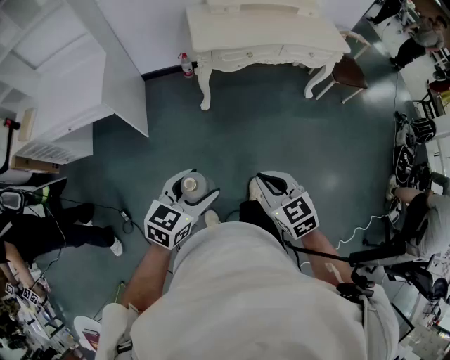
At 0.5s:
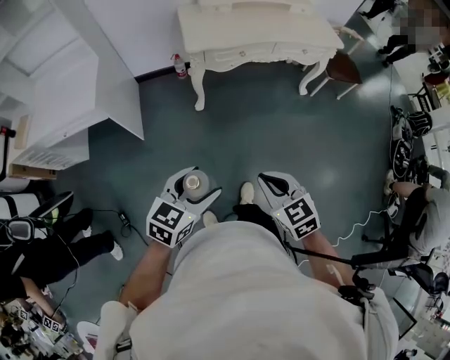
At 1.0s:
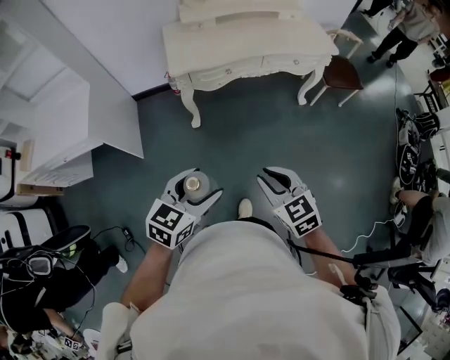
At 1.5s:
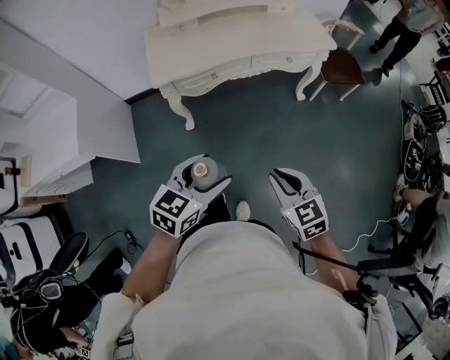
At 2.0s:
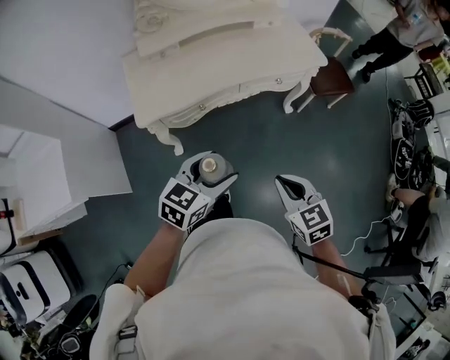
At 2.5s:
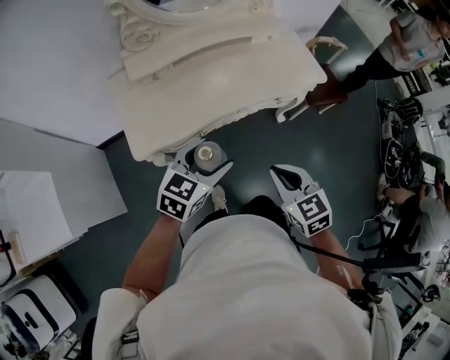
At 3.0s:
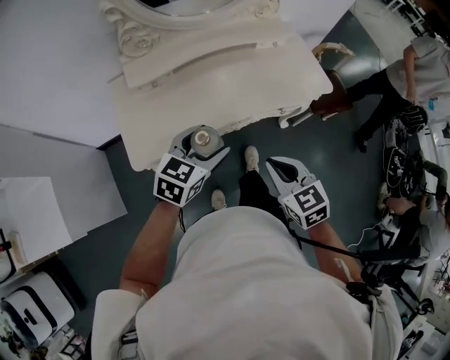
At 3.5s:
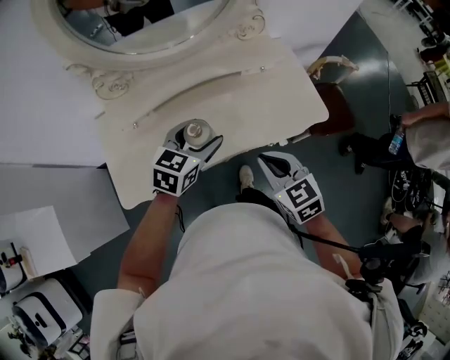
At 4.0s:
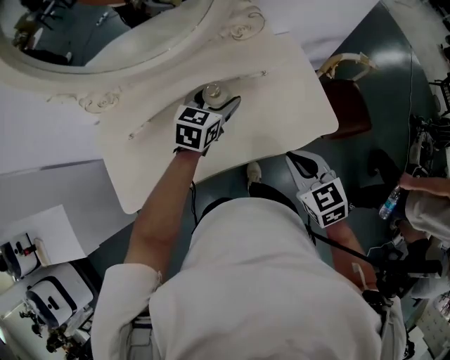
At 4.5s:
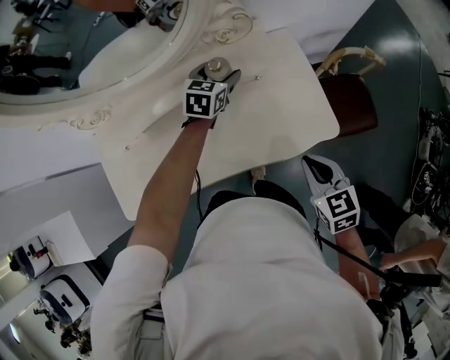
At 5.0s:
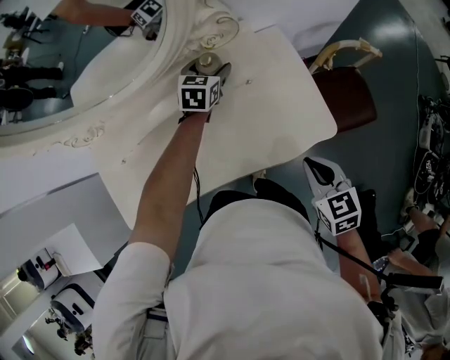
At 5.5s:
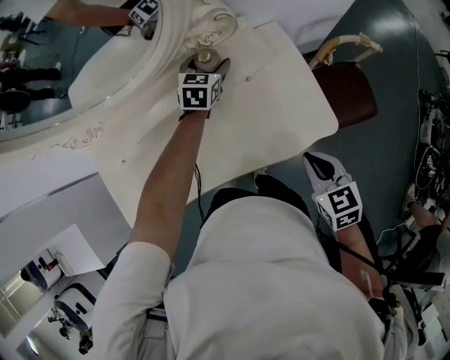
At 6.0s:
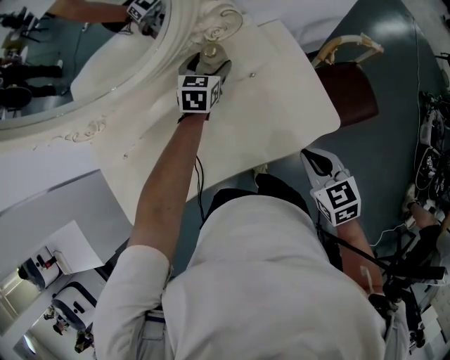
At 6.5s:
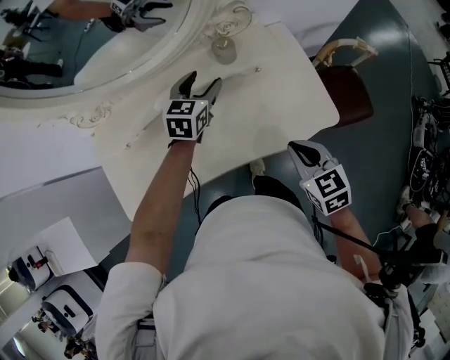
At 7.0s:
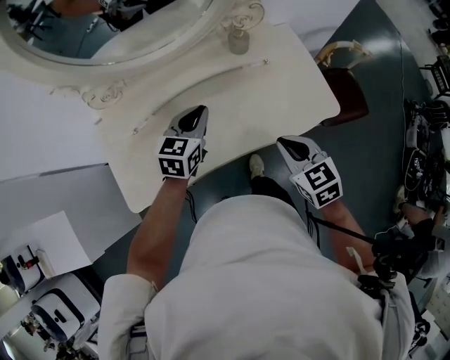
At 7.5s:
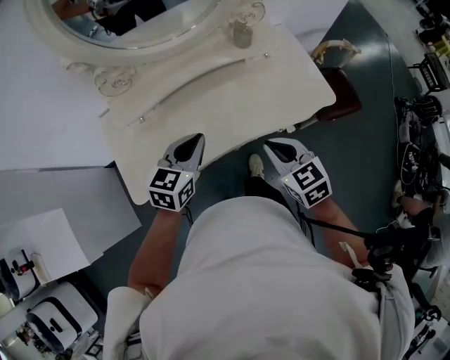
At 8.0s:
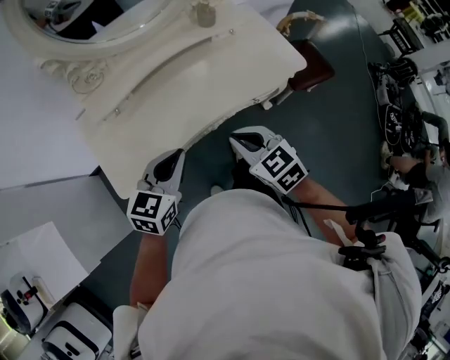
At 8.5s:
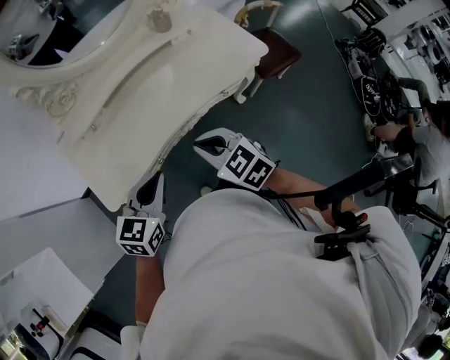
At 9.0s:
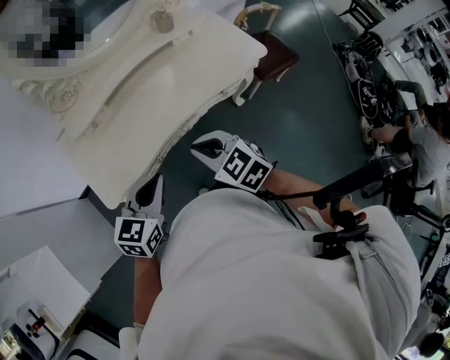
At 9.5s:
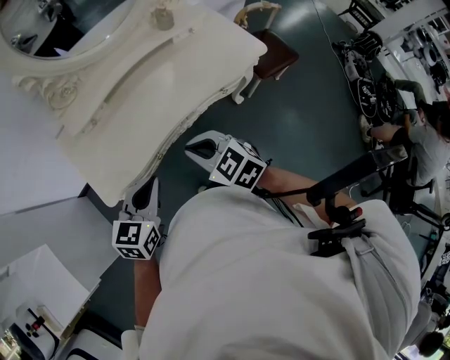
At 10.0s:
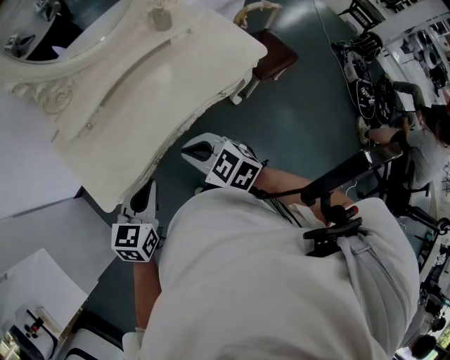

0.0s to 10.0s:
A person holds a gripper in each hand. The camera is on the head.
0.0s to 2.0s: The pair of grippers is taken forward and to the right, roughly 50 cm.
2.0s to 4.0s: The two grippers travel together, forward, about 60 cm.
4.0s to 6.0s: The right gripper shifts about 10 cm to the right, forward and downward; the left gripper travels forward and downward by roughly 20 cm.
6.0s to 8.0s: The left gripper is displaced backward and to the left by roughly 60 cm, and closes its fingers. Meanwhile the right gripper heads to the left and backward, covering roughly 35 cm.
8.0s to 10.0s: The left gripper goes about 5 cm backward; the right gripper travels to the left by roughly 5 cm.

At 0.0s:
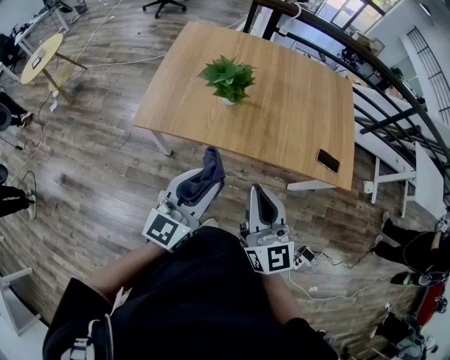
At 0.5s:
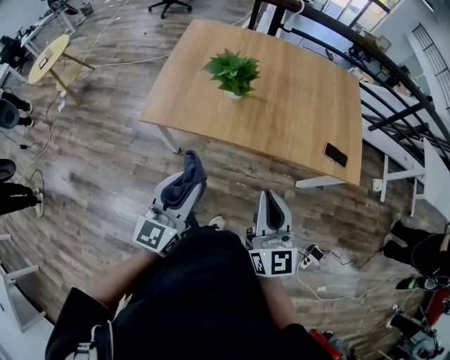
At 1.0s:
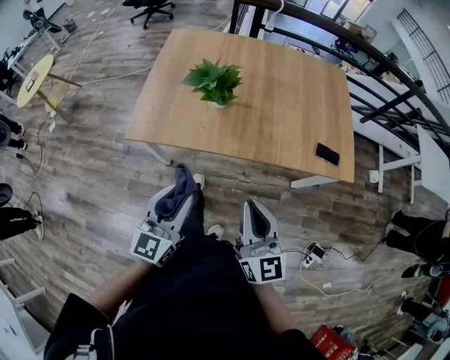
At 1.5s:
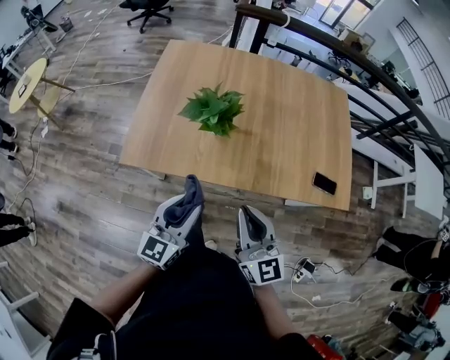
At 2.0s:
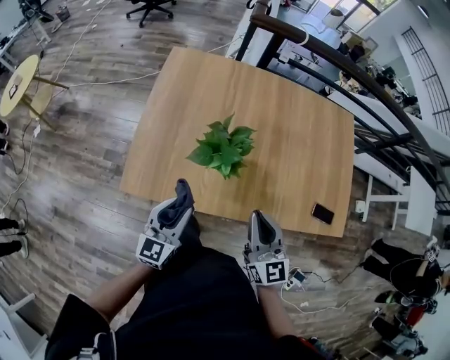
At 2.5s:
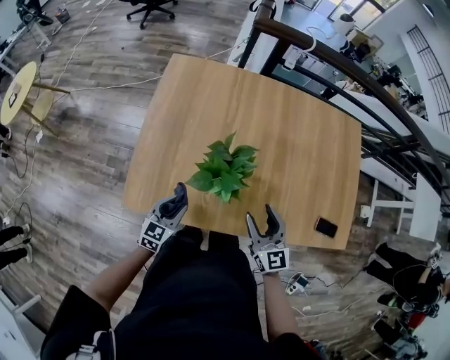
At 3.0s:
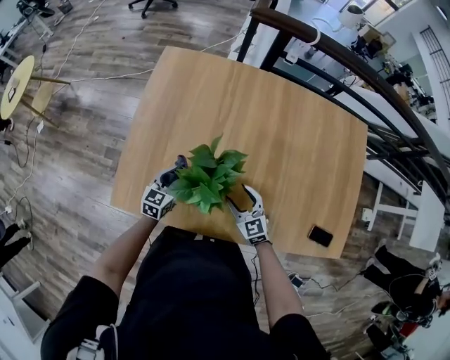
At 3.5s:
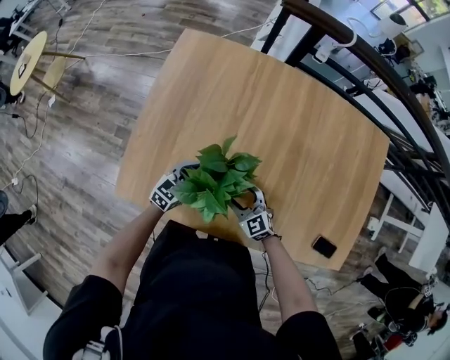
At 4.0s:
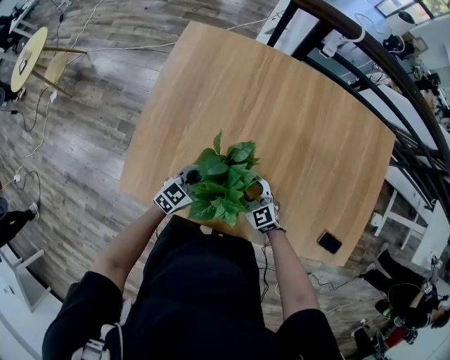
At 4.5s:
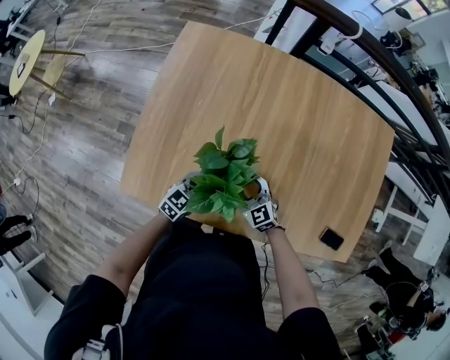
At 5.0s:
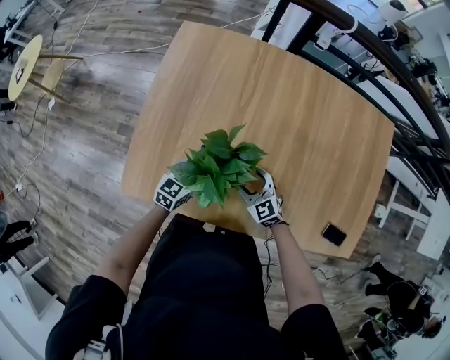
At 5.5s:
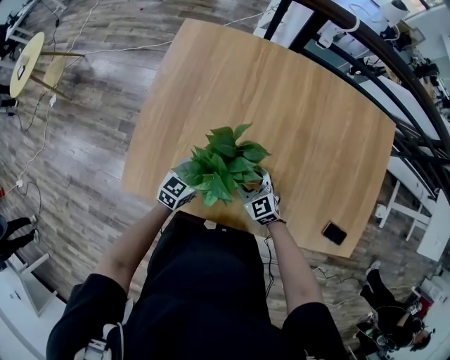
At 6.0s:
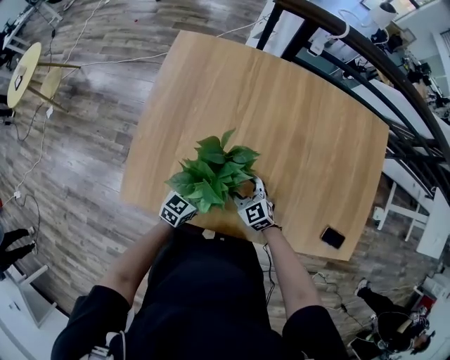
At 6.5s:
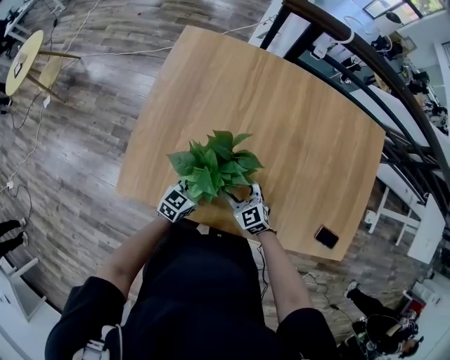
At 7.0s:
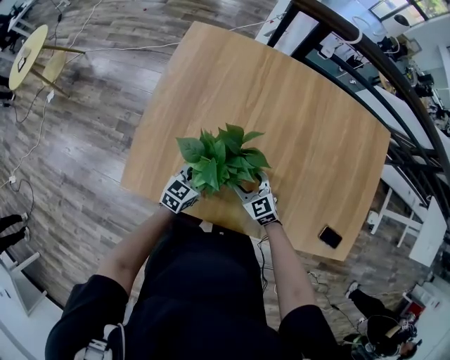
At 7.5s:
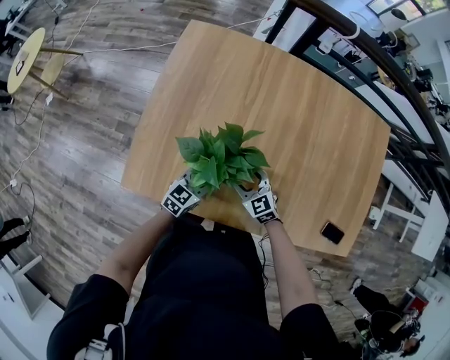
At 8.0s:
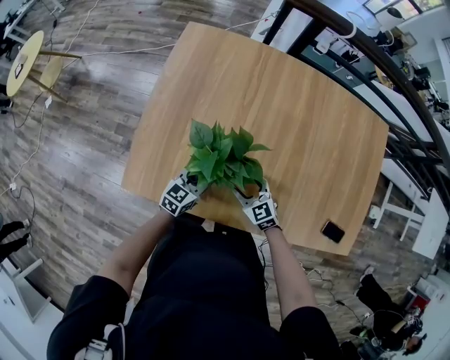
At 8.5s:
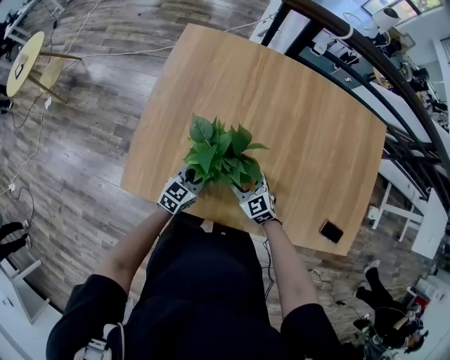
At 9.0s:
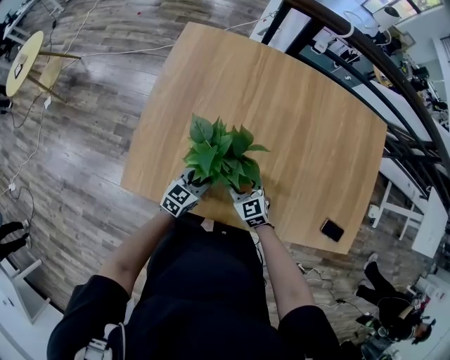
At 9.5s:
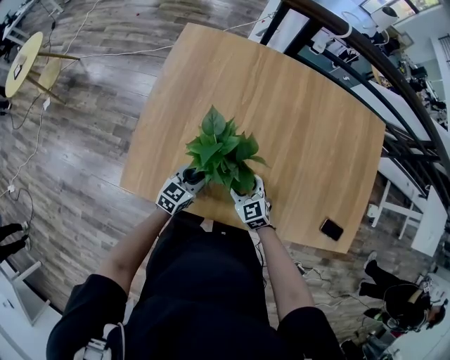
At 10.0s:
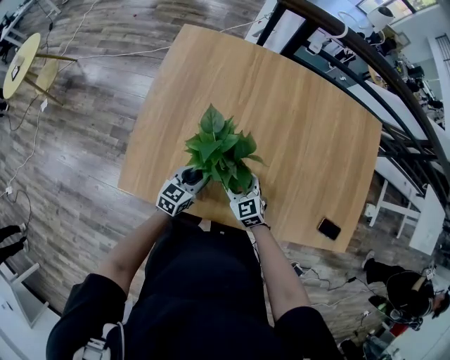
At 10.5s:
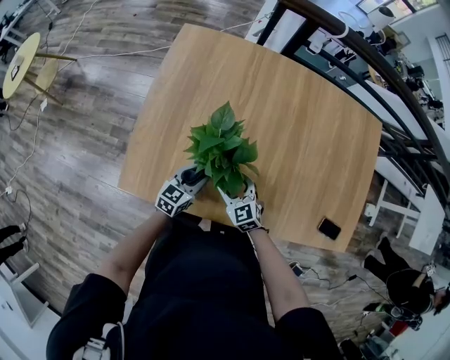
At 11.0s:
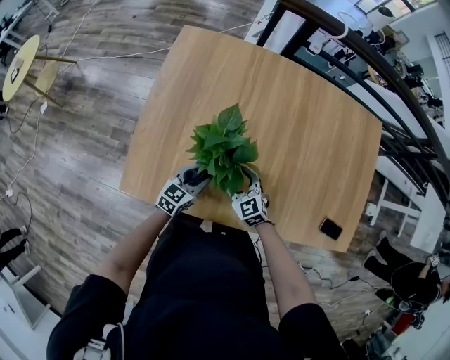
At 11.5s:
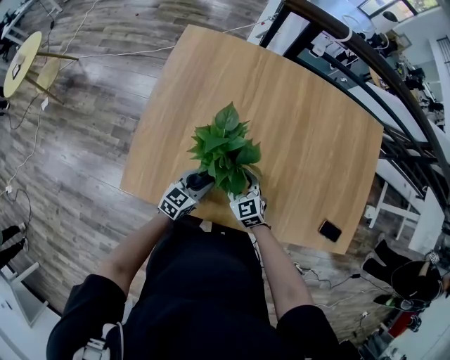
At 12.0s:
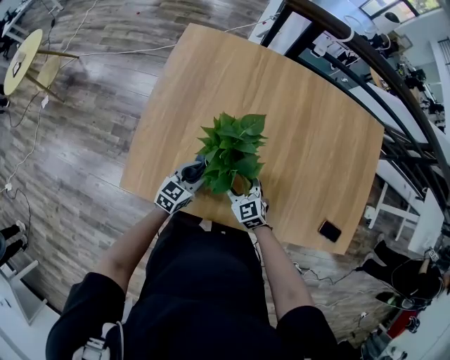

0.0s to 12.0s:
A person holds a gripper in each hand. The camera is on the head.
0.0s to 2.0s: The left gripper shifts some 25 cm forward, downward and to the left. Meanwhile the right gripper moves forward, approximately 20 cm.
2.0s to 4.0s: The grippers both shift downward and forward by about 25 cm. The right gripper rotates roughly 50 degrees, and opens up. The left gripper rotates about 30 degrees.
4.0s to 12.0s: The grippers move only a little.

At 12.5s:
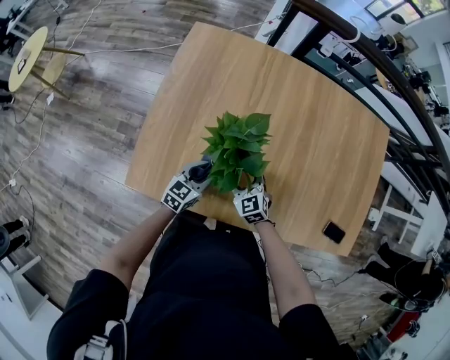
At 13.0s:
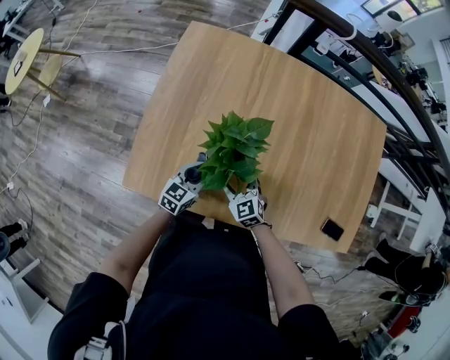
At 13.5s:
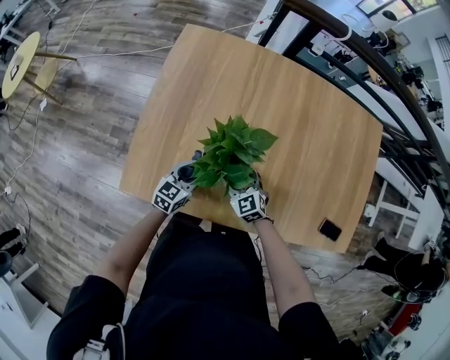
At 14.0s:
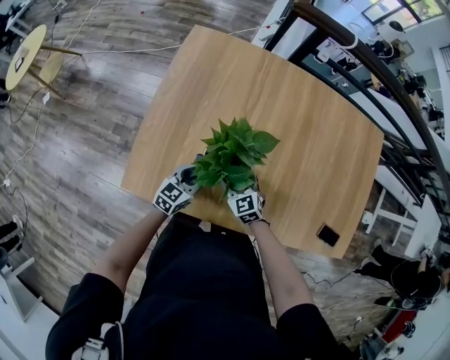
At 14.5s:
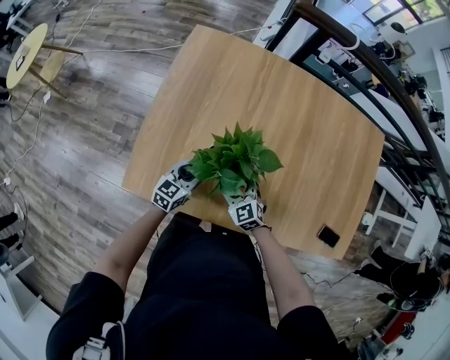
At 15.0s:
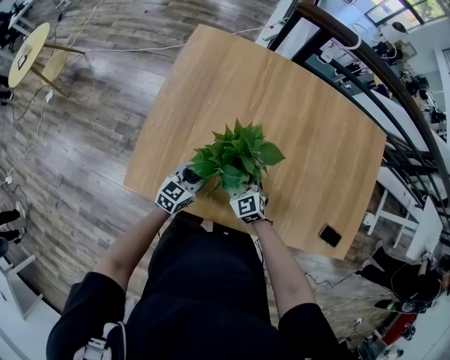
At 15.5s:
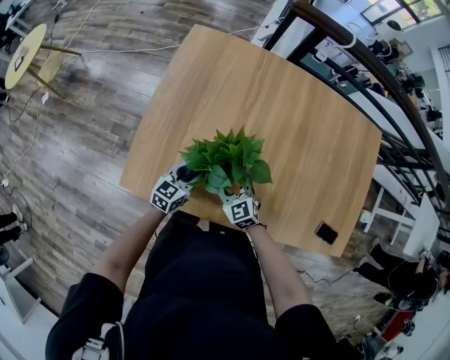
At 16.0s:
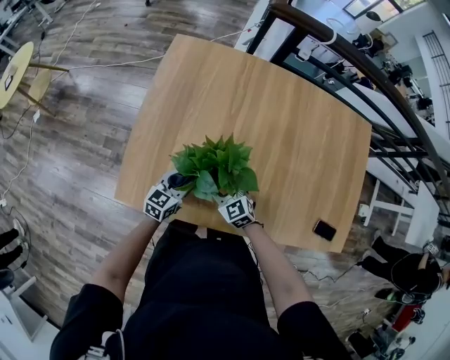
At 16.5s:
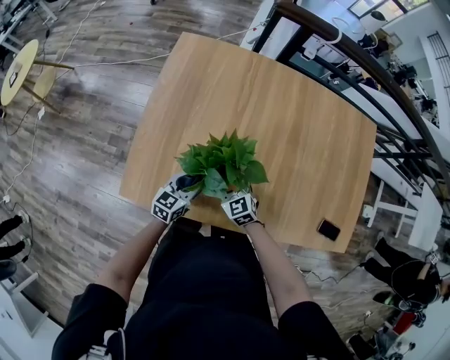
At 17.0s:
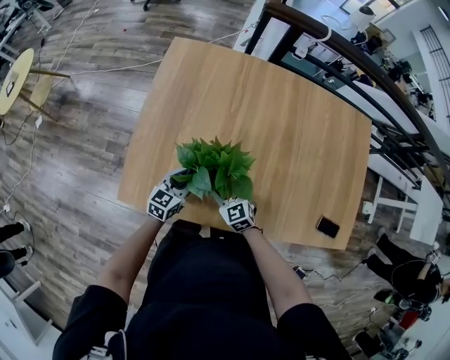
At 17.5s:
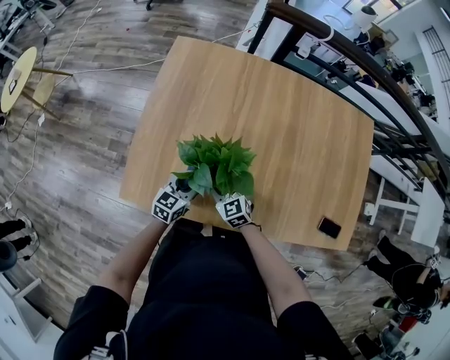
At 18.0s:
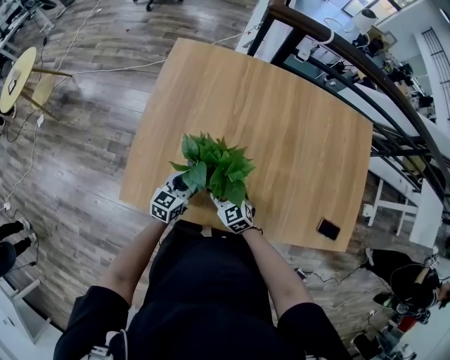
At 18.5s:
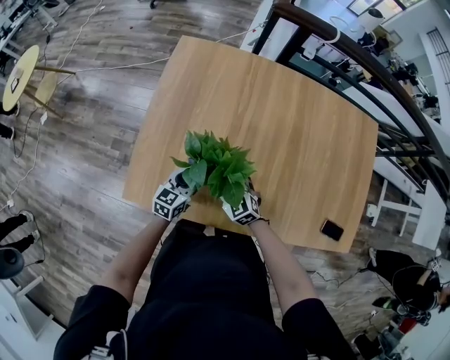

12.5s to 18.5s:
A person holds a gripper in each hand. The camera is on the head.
12.5s to 16.5s: The grippers make only small movements.
16.5s to 18.5s: The grippers stay close to where they were, moving slightly.
